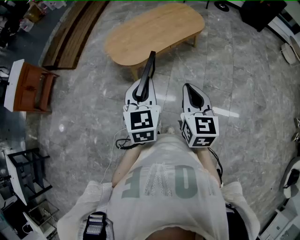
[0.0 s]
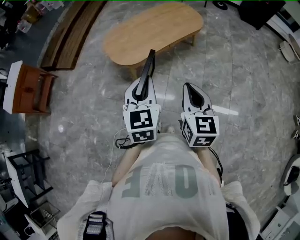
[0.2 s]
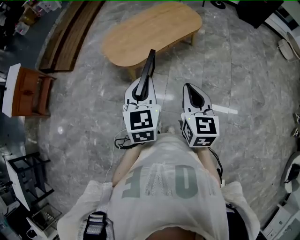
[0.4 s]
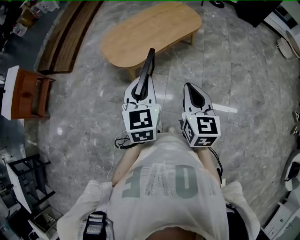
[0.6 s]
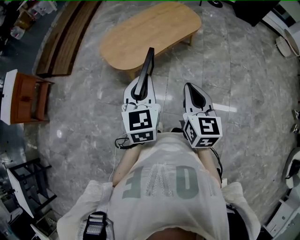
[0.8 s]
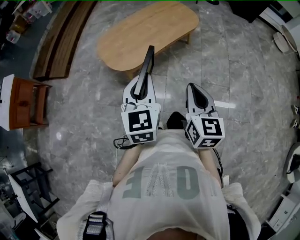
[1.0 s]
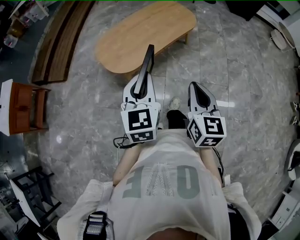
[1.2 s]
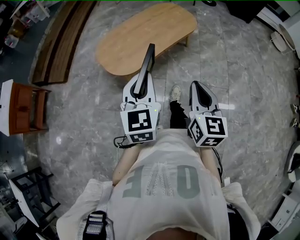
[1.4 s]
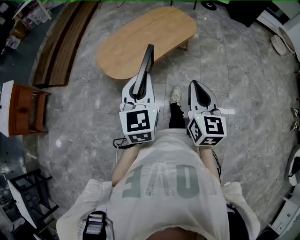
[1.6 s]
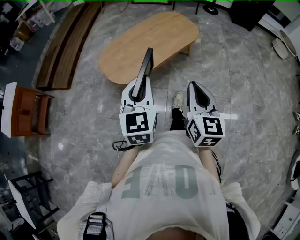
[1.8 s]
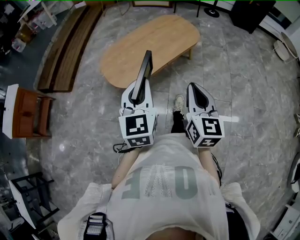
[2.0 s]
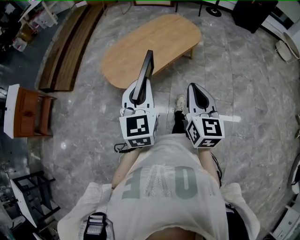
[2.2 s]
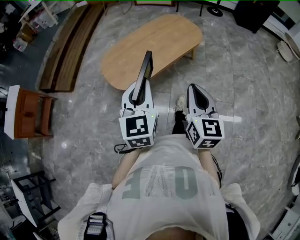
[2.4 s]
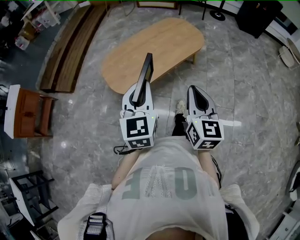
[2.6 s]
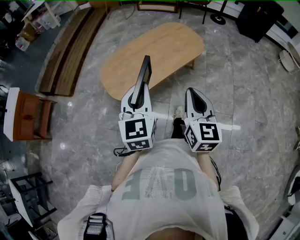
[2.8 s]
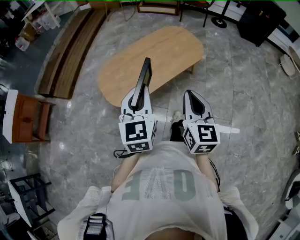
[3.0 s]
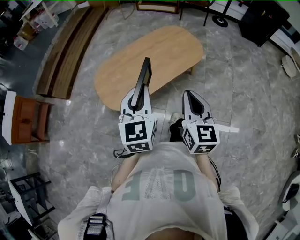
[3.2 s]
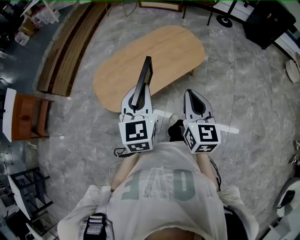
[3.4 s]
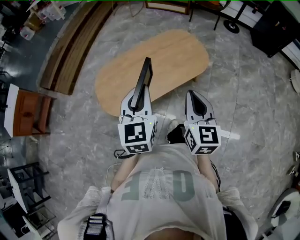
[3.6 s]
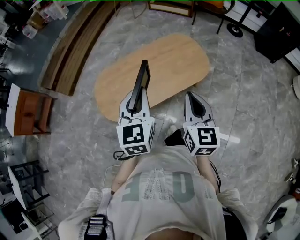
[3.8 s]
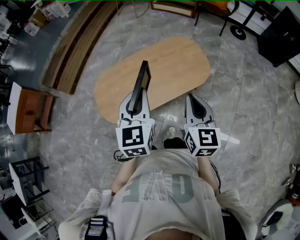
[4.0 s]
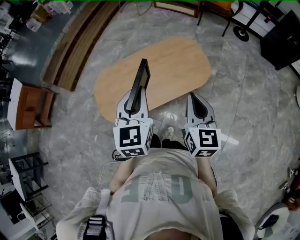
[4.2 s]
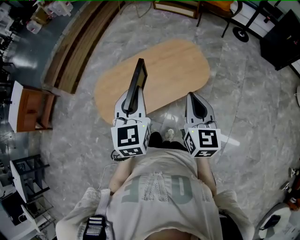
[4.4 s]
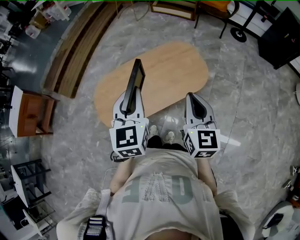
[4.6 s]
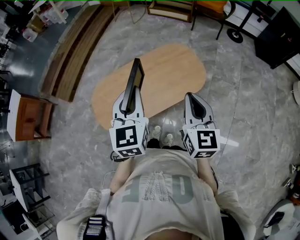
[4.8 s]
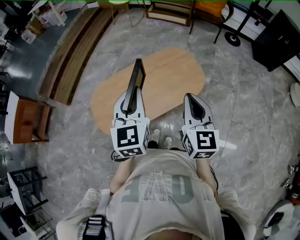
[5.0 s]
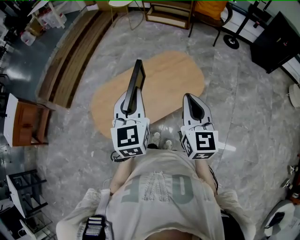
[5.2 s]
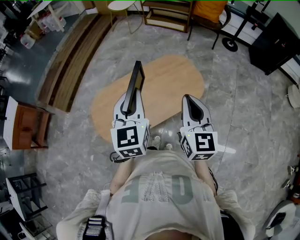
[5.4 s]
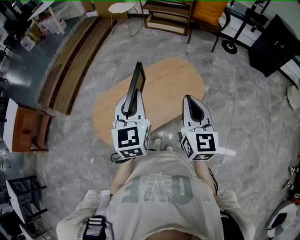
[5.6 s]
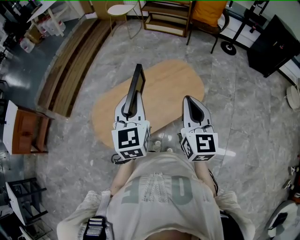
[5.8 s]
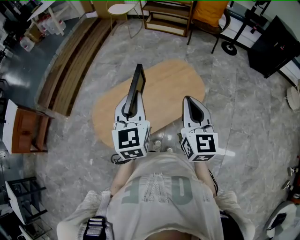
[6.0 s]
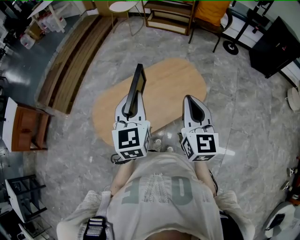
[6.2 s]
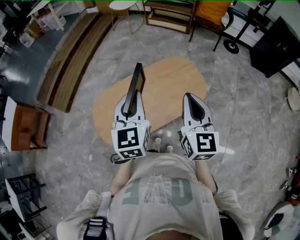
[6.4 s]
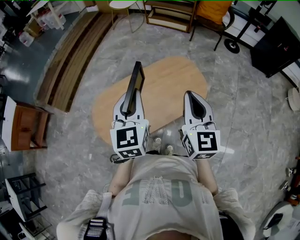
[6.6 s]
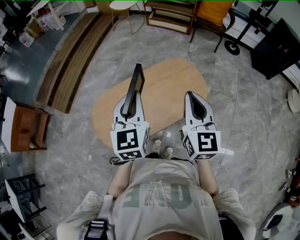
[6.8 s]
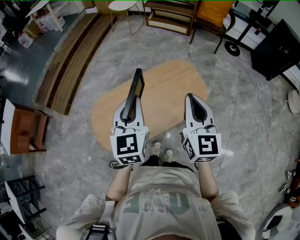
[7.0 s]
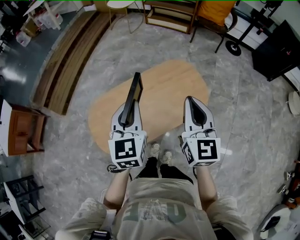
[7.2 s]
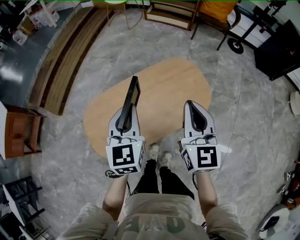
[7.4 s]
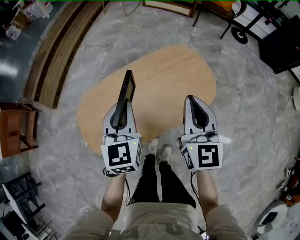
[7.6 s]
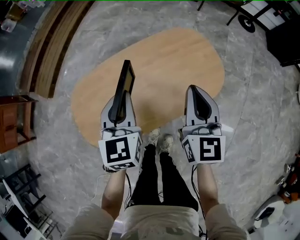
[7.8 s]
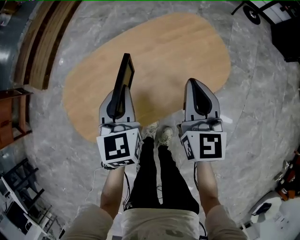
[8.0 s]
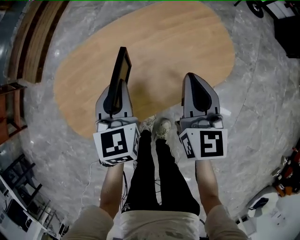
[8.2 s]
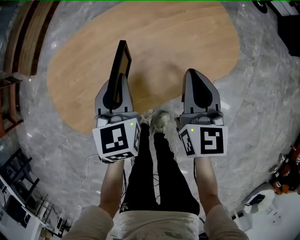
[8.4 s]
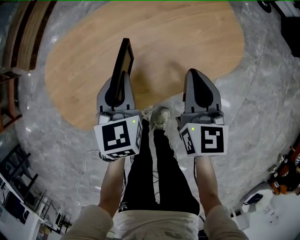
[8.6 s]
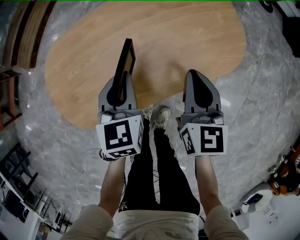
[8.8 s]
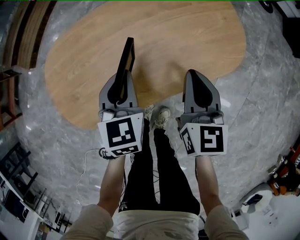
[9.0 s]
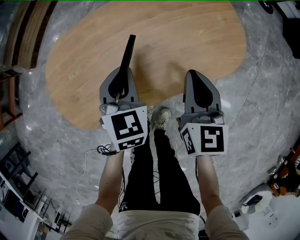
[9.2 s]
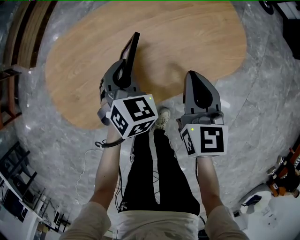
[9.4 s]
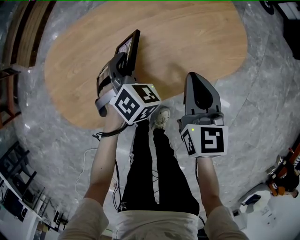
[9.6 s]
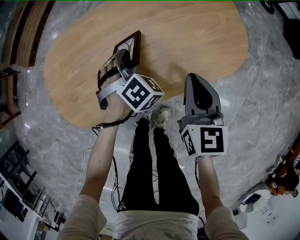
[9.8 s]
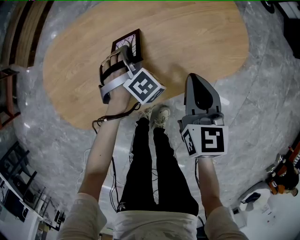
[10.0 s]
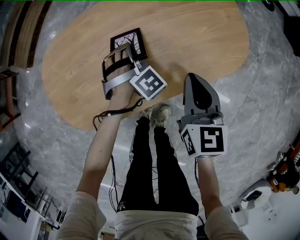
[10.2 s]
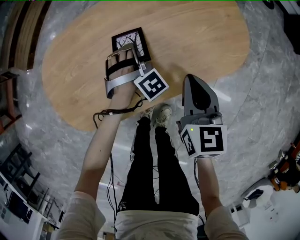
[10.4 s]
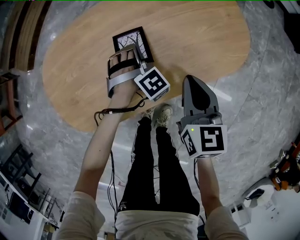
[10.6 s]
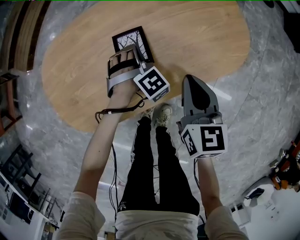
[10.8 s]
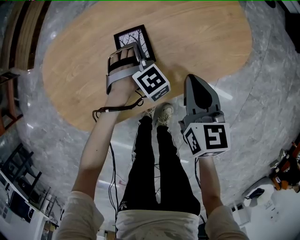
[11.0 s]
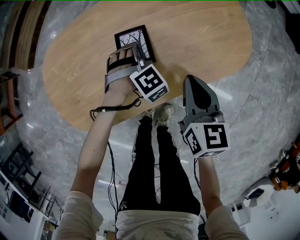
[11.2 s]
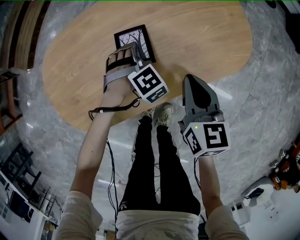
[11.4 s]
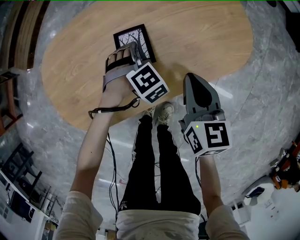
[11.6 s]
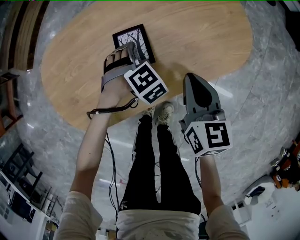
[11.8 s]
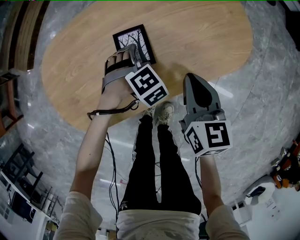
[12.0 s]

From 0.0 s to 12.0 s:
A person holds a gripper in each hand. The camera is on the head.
From 0.0 s to 1.6 s: The two grippers go some 10 cm forward.
From 1.6 s to 3.0 s: Both grippers move forward, some 15 cm.
From 3.0 s to 4.4 s: Both grippers move forward and to the right, roughly 25 cm.
From 4.4 s to 6.0 s: The two grippers go some 5 cm forward.
From 6.0 s to 7.6 s: Both grippers travel together downward and forward, about 20 cm.
From 7.6 s to 9.0 s: Both grippers move downward, approximately 25 cm.
From 9.0 s to 10.4 s: The left gripper shifts roughly 15 cm downward and forward, and twists approximately 80 degrees clockwise, seen from behind.
From 10.4 s to 12.0 s: The left gripper heads backward, covering roughly 5 cm, rotates approximately 30 degrees, and opens.

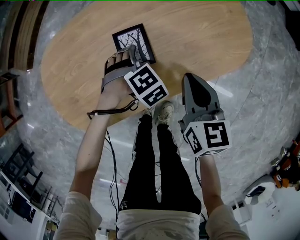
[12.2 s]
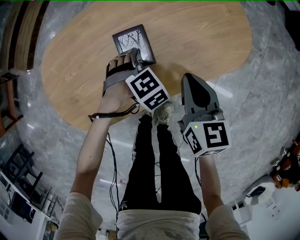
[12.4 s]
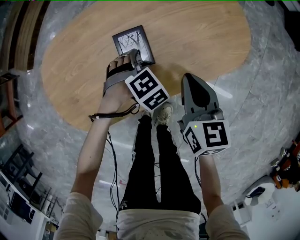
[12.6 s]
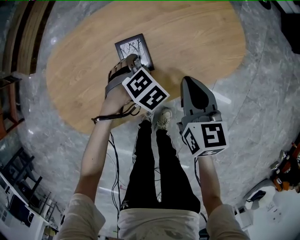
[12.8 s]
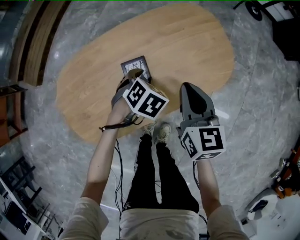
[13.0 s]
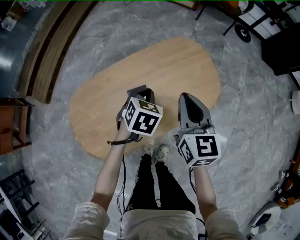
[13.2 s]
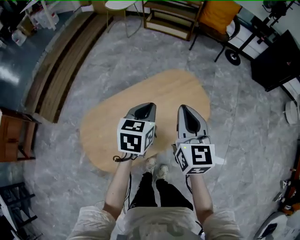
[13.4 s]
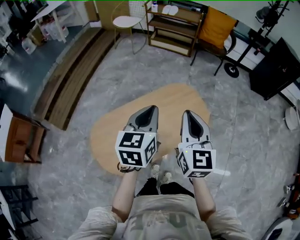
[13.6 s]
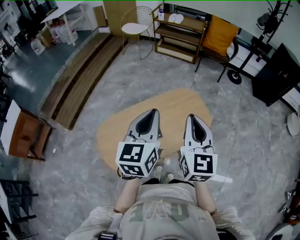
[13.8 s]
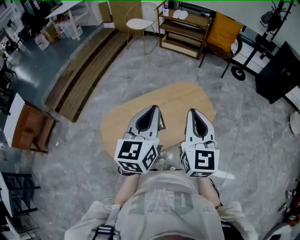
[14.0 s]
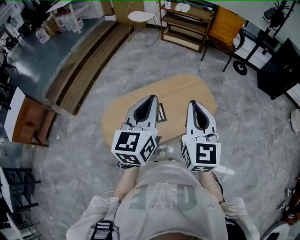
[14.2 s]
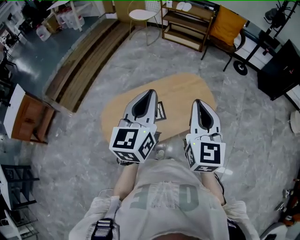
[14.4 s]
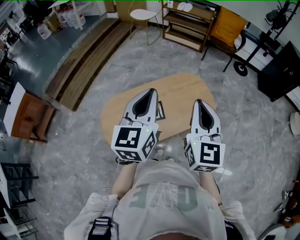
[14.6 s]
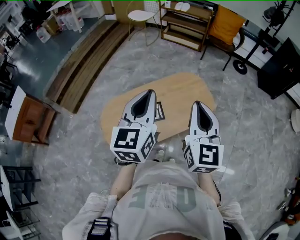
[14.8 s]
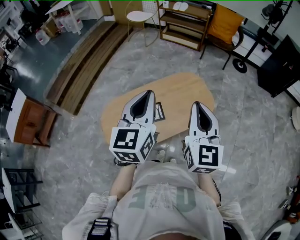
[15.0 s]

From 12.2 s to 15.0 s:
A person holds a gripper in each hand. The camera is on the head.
From 12.2 s to 13.6 s: Both grippers travel together upward, roughly 50 cm. The right gripper swivels about 30 degrees, while the left gripper tilts its fingers some 50 degrees upward, and closes up.
From 13.6 s to 15.0 s: The grippers both shift backward and upward by roughly 15 cm.

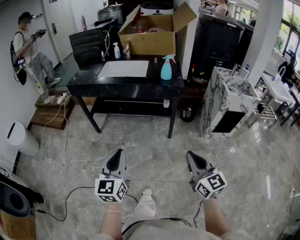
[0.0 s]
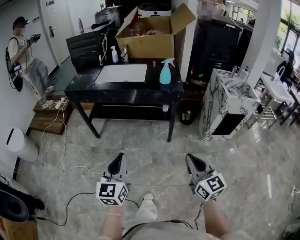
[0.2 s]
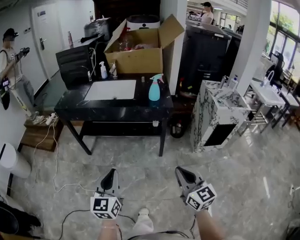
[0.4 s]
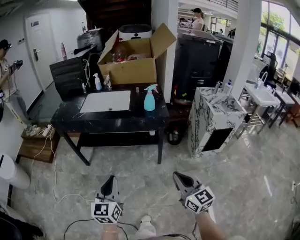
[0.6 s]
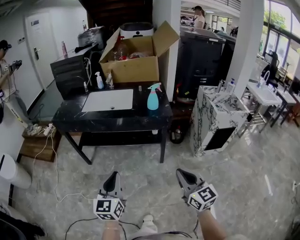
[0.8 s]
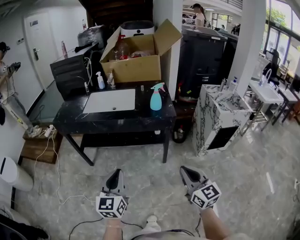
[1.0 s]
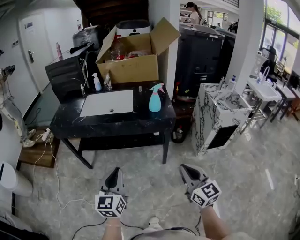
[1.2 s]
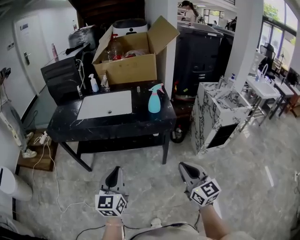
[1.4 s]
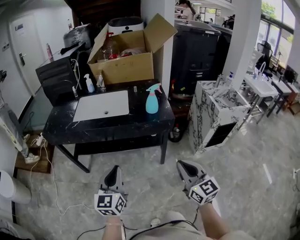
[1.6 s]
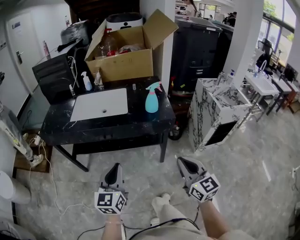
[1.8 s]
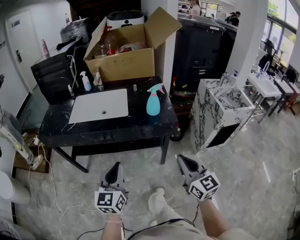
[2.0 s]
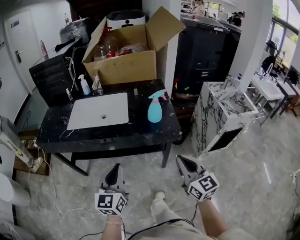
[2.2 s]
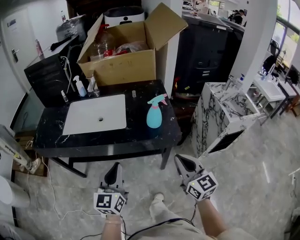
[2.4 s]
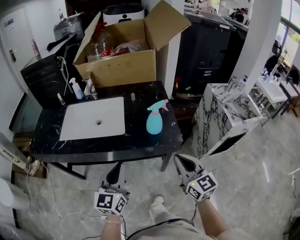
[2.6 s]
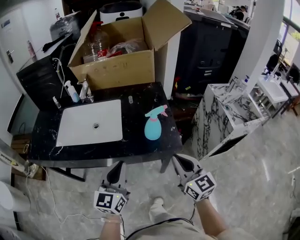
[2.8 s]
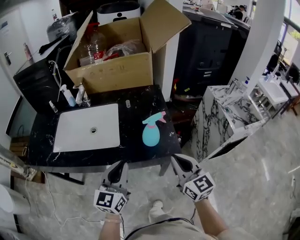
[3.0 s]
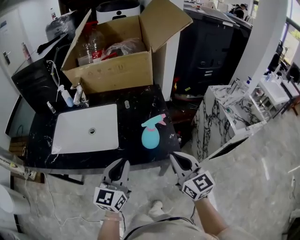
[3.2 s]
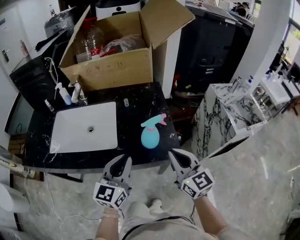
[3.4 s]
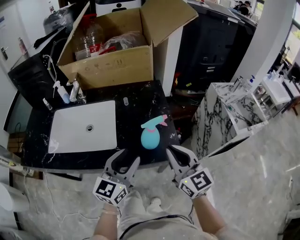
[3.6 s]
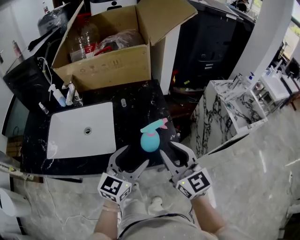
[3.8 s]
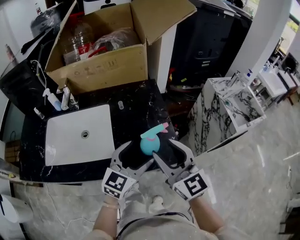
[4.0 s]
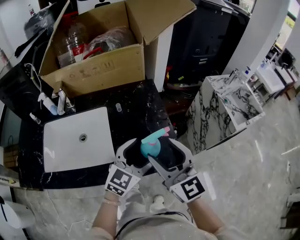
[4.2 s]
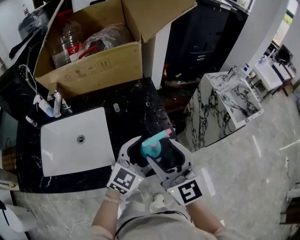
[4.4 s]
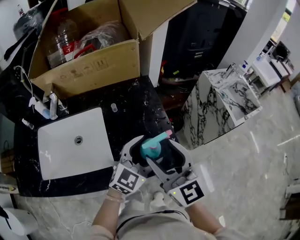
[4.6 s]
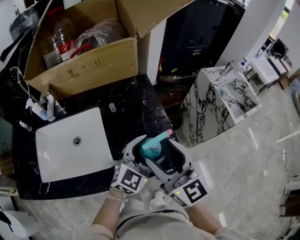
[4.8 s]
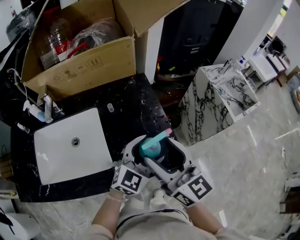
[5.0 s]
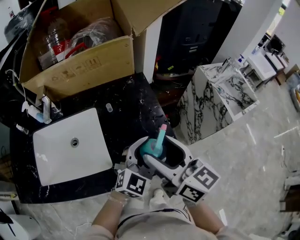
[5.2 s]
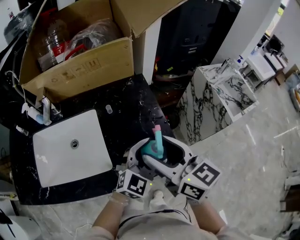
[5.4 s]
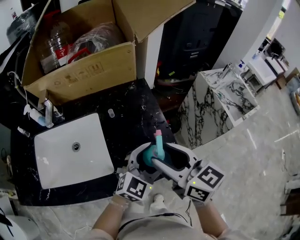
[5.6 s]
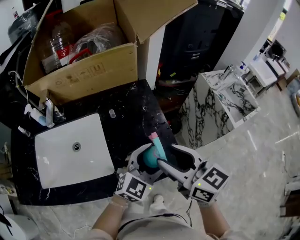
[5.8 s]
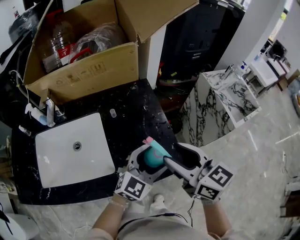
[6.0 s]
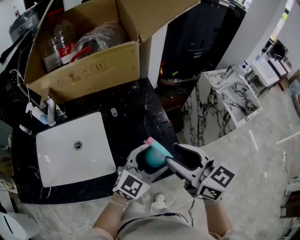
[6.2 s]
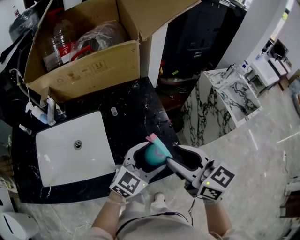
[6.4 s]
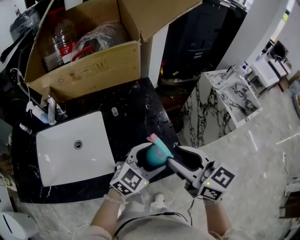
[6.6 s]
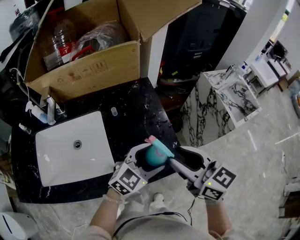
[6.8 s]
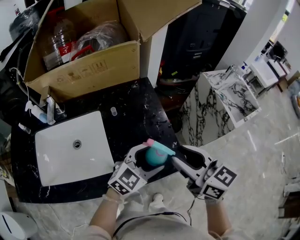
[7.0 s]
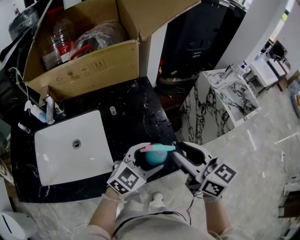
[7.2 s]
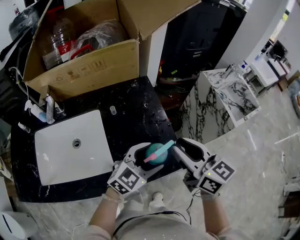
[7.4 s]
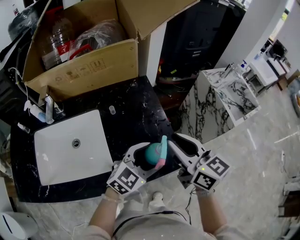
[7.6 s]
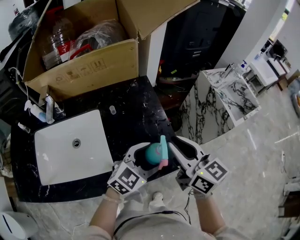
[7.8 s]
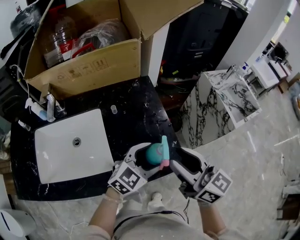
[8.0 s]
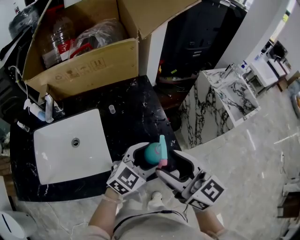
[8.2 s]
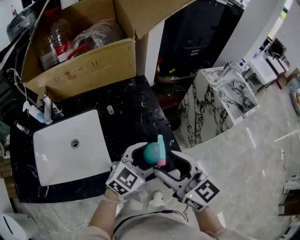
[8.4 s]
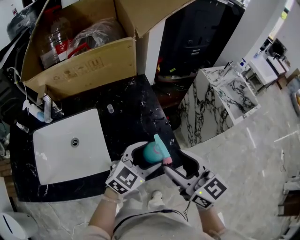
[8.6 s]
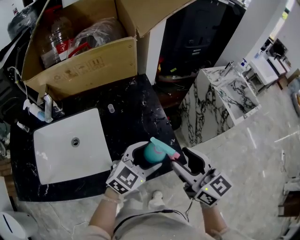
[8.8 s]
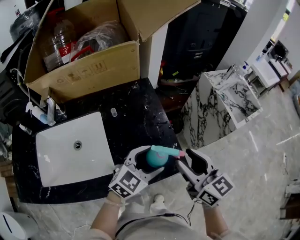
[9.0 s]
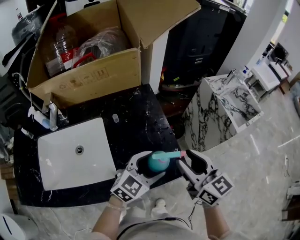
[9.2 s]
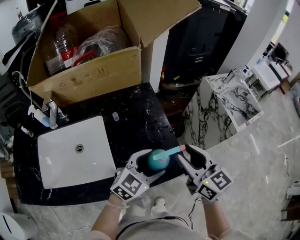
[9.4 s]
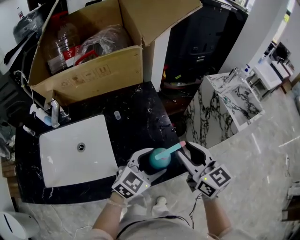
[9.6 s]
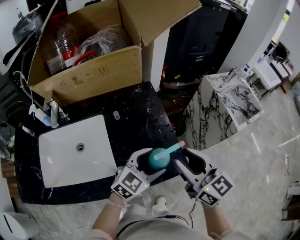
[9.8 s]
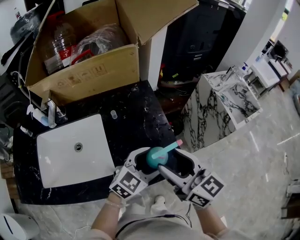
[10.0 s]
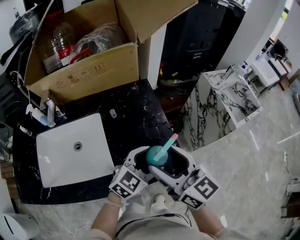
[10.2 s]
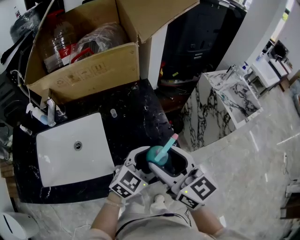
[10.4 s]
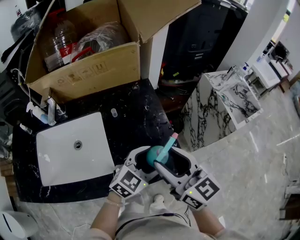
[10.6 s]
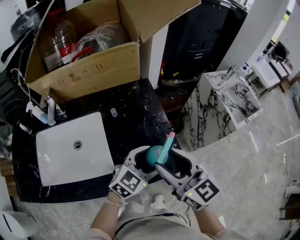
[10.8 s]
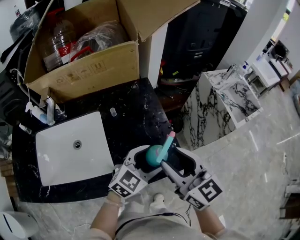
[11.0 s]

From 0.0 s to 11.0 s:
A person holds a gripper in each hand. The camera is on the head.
From 0.0 s to 1.6 s: Both grippers move forward, approximately 20 cm.
From 1.6 s to 3.2 s: Both grippers travel together forward, some 30 cm.
From 3.2 s to 4.8 s: The left gripper heads forward and to the right, covering roughly 15 cm, swivels approximately 40 degrees, and opens its fingers. The right gripper shifts roughly 10 cm forward, to the left and upward, and opens.
From 4.8 s to 6.2 s: The right gripper turns by roughly 20 degrees.
From 6.2 s to 7.8 s: The grippers make only small movements.
From 9.4 s to 11.0 s: The right gripper shifts by about 5 cm, and opens, then closes once more.
